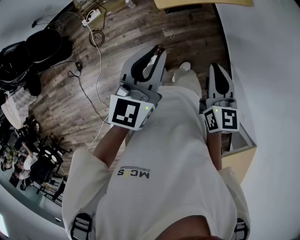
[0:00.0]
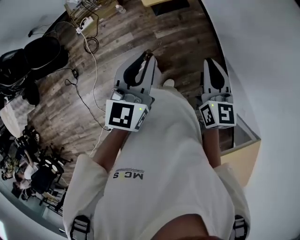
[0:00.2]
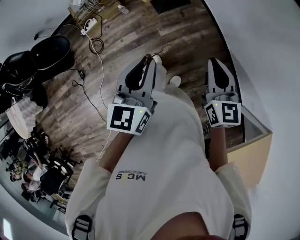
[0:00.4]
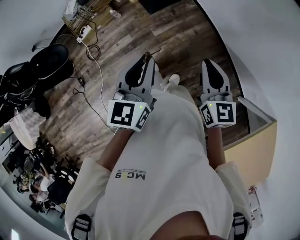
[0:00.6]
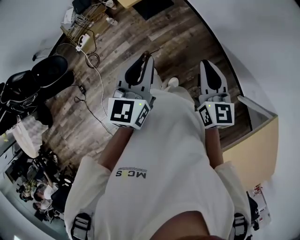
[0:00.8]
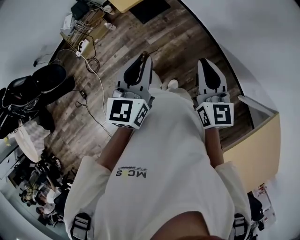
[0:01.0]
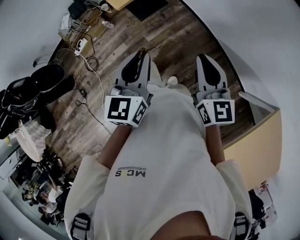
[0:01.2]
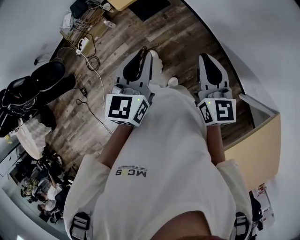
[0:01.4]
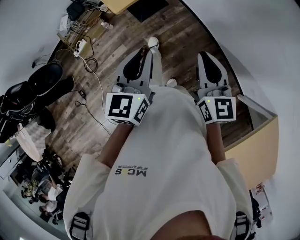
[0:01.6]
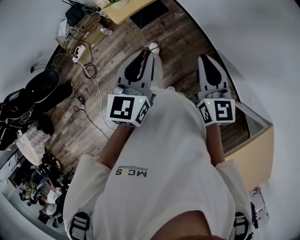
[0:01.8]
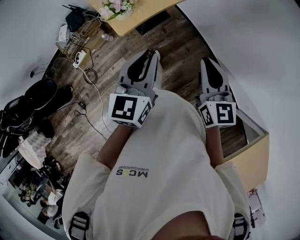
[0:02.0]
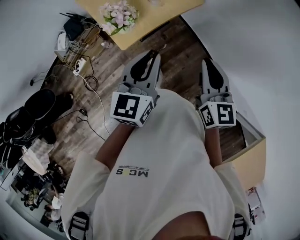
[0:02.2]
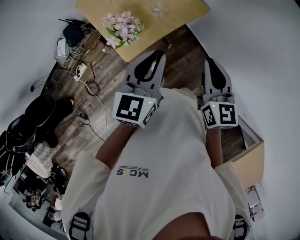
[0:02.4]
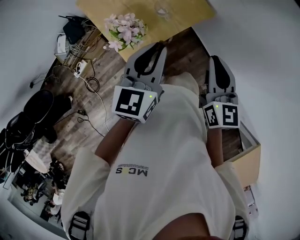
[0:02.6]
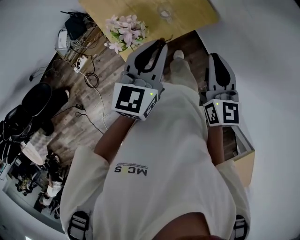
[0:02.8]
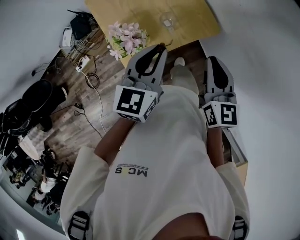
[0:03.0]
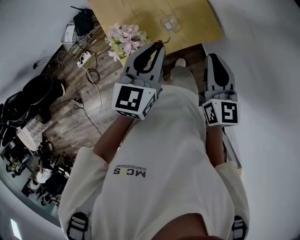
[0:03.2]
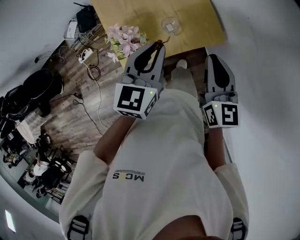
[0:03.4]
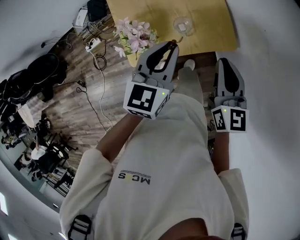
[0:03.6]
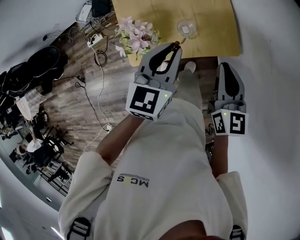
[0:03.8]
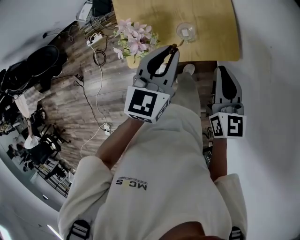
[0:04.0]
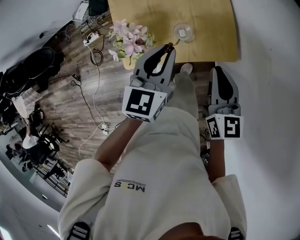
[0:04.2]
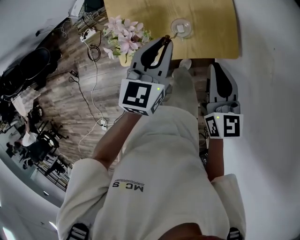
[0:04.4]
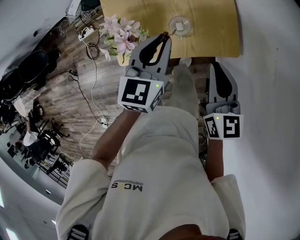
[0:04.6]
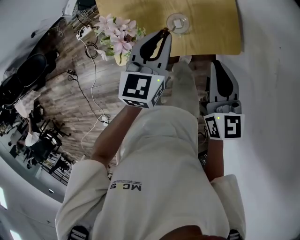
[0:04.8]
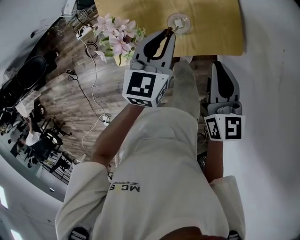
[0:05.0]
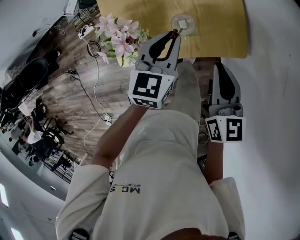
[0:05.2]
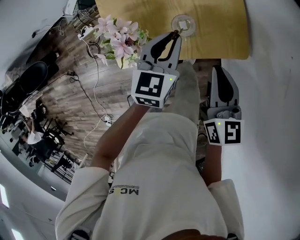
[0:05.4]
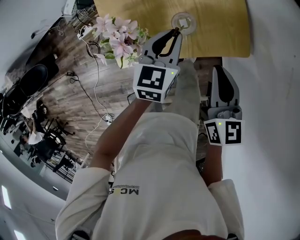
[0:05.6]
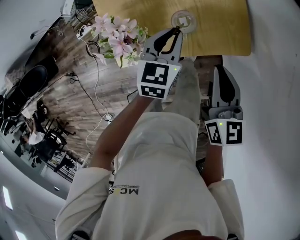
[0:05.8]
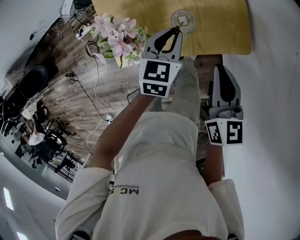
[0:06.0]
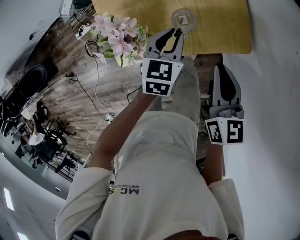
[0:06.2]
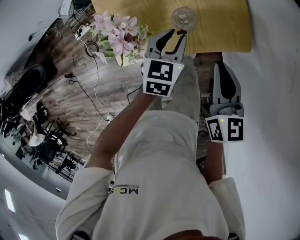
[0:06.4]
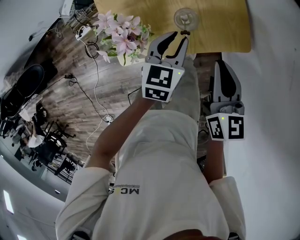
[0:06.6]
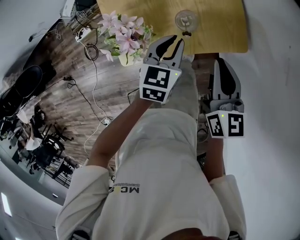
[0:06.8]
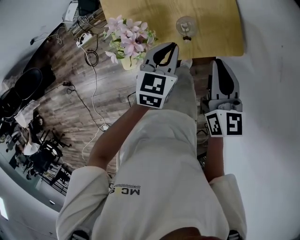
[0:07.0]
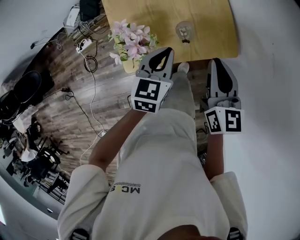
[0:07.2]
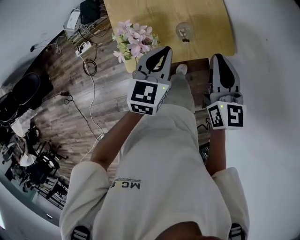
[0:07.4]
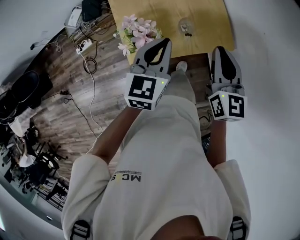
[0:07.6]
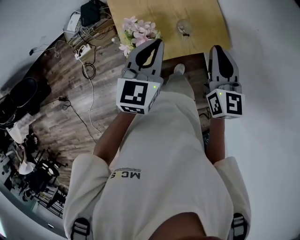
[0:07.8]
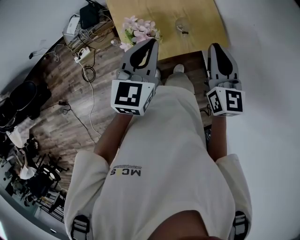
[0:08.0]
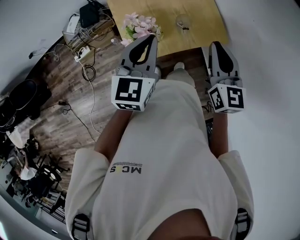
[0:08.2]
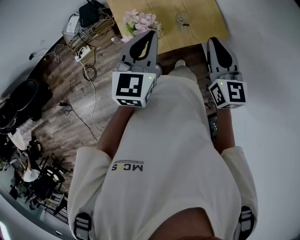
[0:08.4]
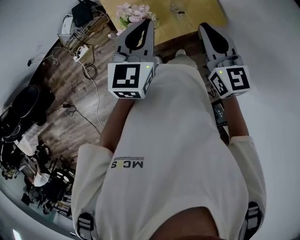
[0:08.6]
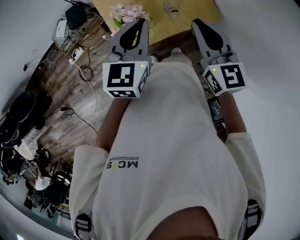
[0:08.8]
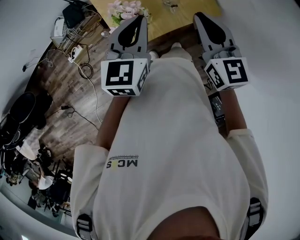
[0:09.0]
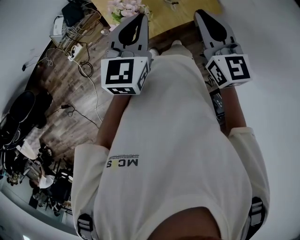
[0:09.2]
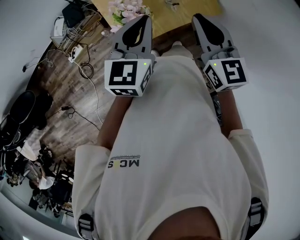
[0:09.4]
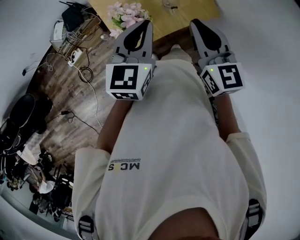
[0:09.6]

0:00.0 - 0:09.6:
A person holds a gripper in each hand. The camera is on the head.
0:00.0 - 0:01.6: Both grippers move to the right and backward, roughly 20 cm.
0:01.6 - 0:03.2: Both grippers are carried forward, approximately 50 cm.
0:03.2 - 0:04.8: Both grippers travel together downward and forward, about 15 cm.
0:04.8 - 0:06.4: The left gripper moves downward, roughly 10 cm, while the right gripper ends up roughly 5 cm from where it was.
0:06.4 - 0:08.0: The right gripper moves upward, approximately 15 cm, and swivels about 20 degrees. The left gripper heads upward, covering approximately 25 cm, swivels roughly 20 degrees, and closes up.
0:08.0 - 0:09.6: The right gripper moves to the left, approximately 5 cm.

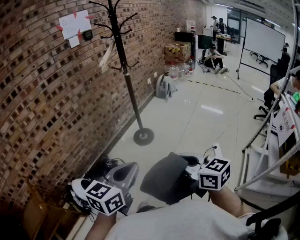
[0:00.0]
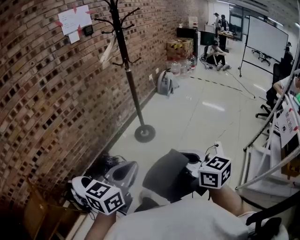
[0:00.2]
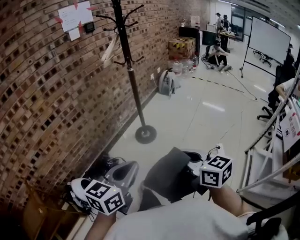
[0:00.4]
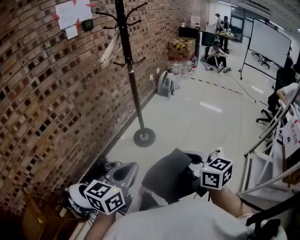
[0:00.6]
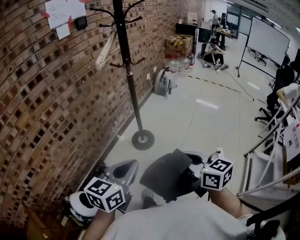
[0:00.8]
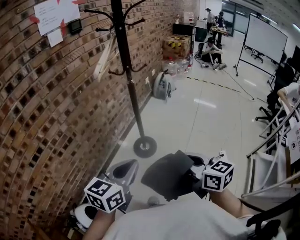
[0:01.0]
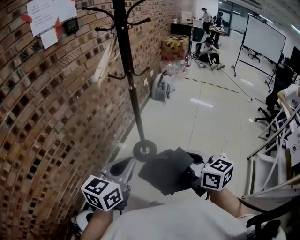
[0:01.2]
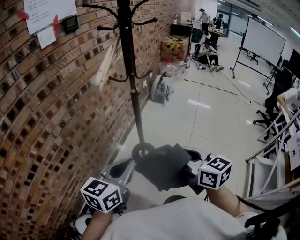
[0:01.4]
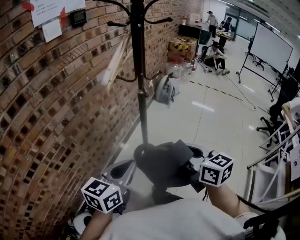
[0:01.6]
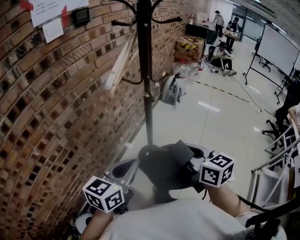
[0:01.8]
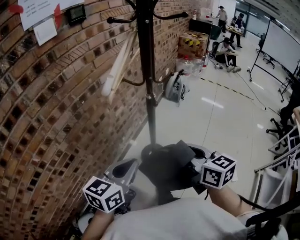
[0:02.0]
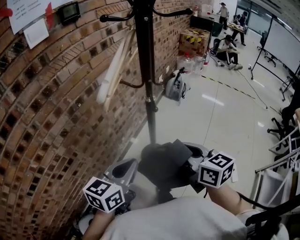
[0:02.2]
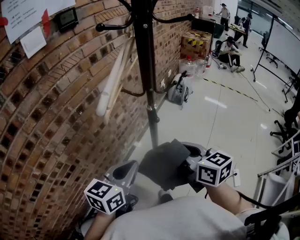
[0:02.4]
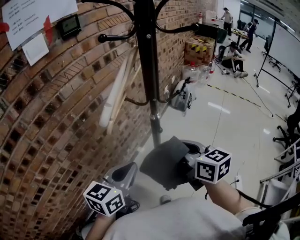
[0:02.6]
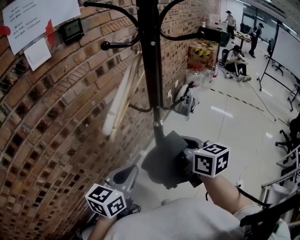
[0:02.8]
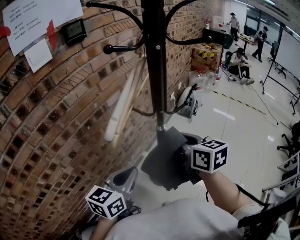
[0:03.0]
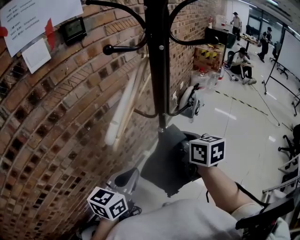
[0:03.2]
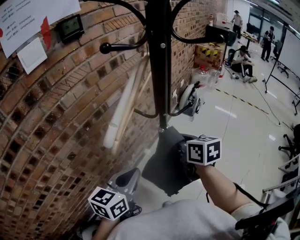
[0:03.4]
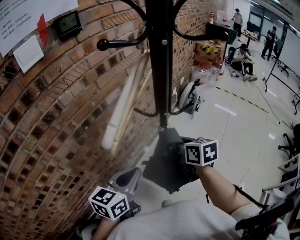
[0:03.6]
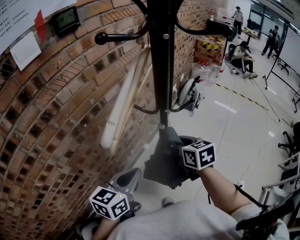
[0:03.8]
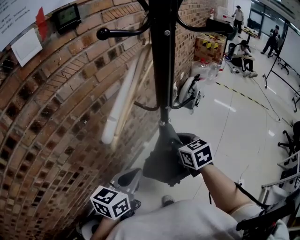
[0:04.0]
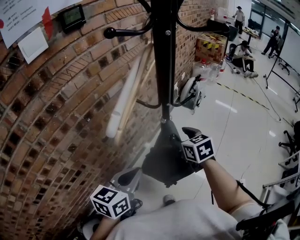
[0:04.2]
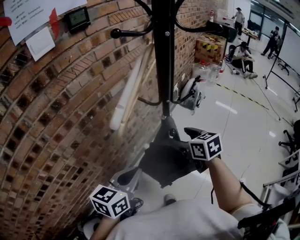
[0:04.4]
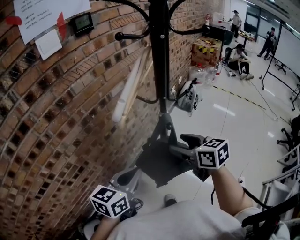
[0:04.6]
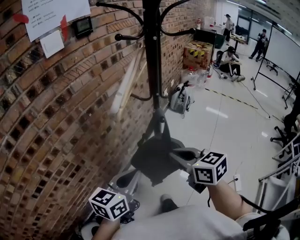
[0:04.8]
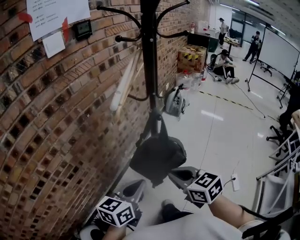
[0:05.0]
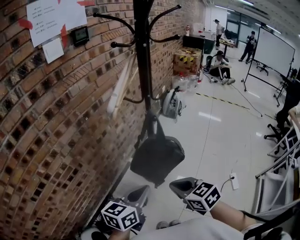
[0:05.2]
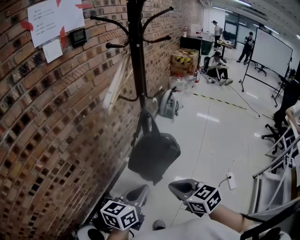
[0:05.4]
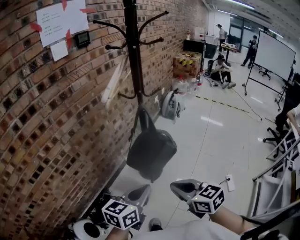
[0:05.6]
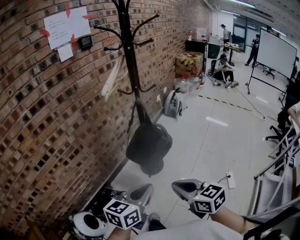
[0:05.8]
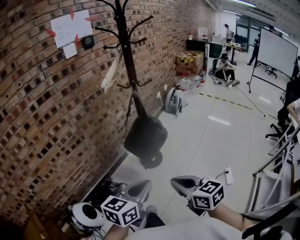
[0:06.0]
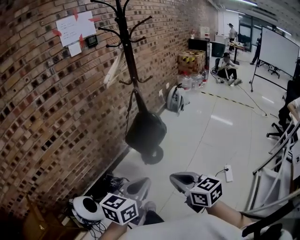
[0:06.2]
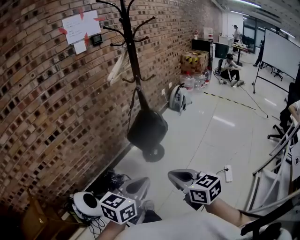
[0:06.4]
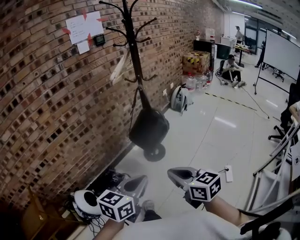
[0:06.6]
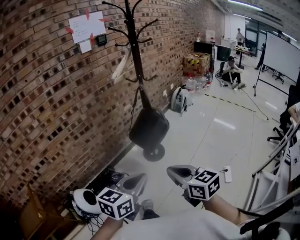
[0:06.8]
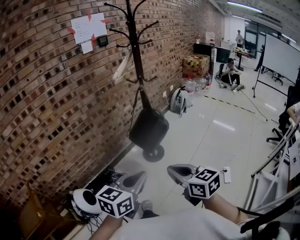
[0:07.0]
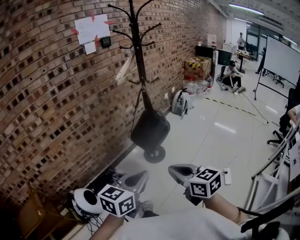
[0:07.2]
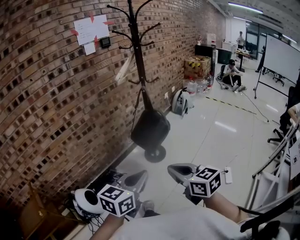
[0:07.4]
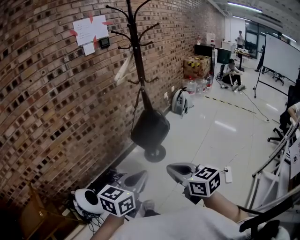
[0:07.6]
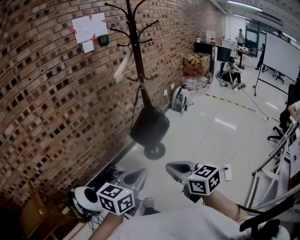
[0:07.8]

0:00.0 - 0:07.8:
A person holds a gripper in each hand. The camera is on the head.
0:00.0 - 0:01.6: The pair of grippers is taken forward, roughly 50 cm.
0:01.6 - 0:03.2: The two grippers go some 25 cm forward.
0:03.2 - 0:04.6: The two grippers go roughly 10 cm backward. The right gripper opens its fingers.
0:04.6 - 0:06.2: The two grippers travel together, backward, approximately 50 cm. The right gripper closes its fingers.
0:06.2 - 0:07.8: The right gripper shifts by roughly 5 cm; the left gripper travels backward by roughly 5 cm.

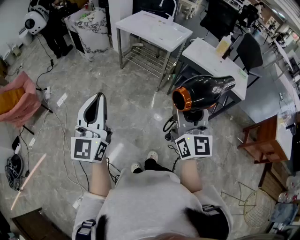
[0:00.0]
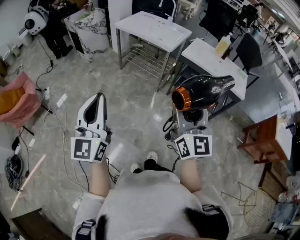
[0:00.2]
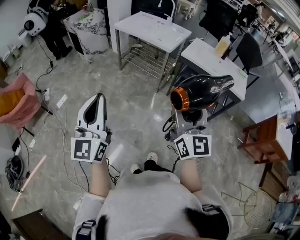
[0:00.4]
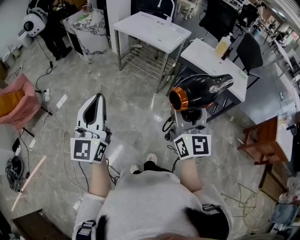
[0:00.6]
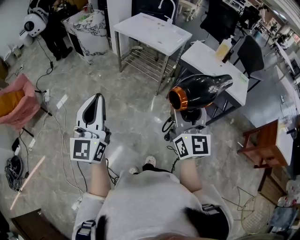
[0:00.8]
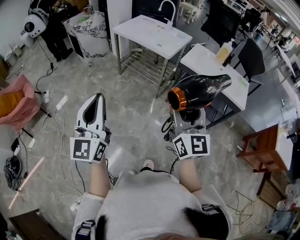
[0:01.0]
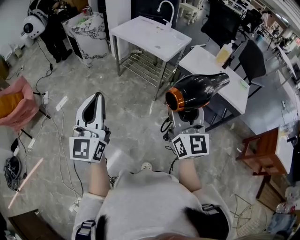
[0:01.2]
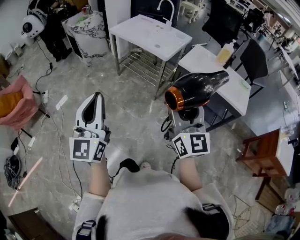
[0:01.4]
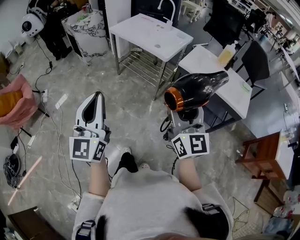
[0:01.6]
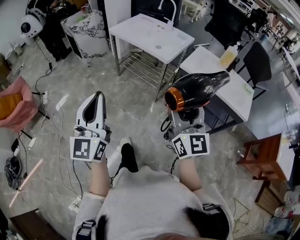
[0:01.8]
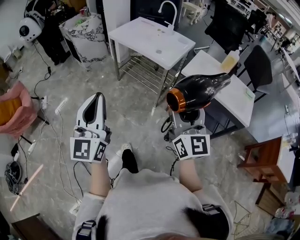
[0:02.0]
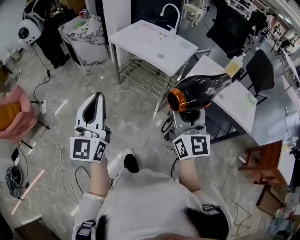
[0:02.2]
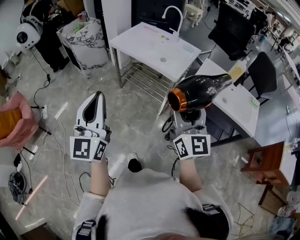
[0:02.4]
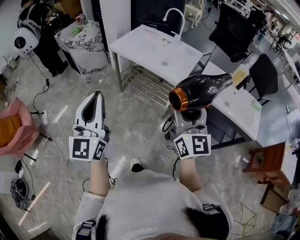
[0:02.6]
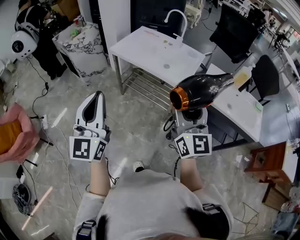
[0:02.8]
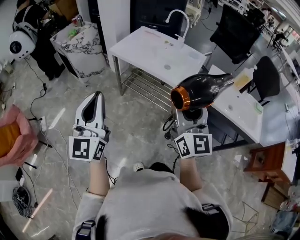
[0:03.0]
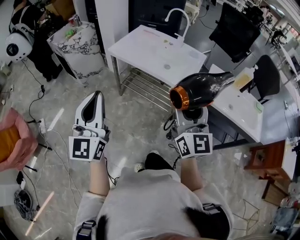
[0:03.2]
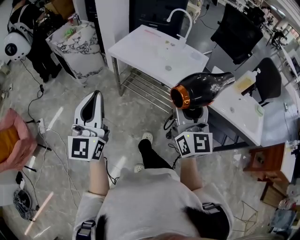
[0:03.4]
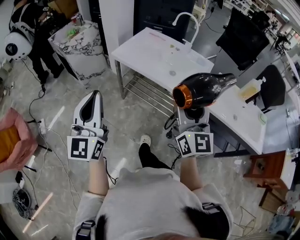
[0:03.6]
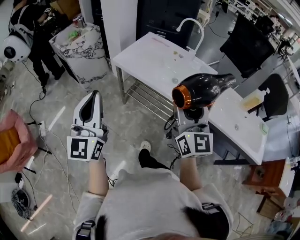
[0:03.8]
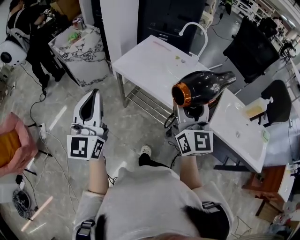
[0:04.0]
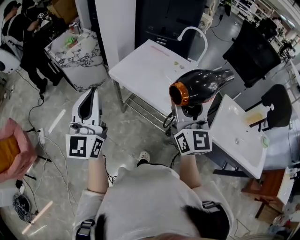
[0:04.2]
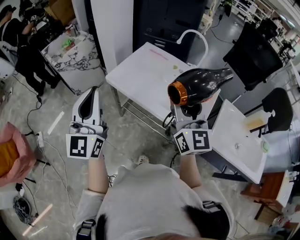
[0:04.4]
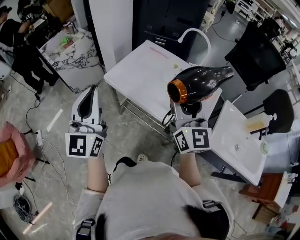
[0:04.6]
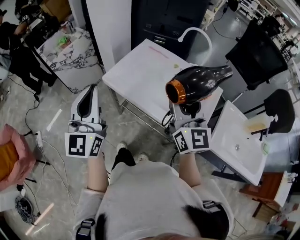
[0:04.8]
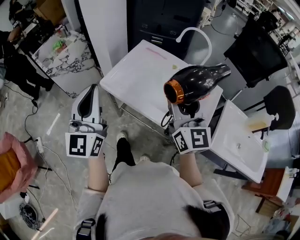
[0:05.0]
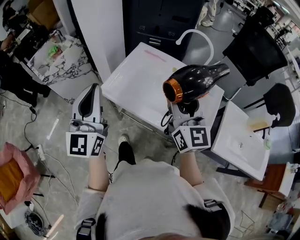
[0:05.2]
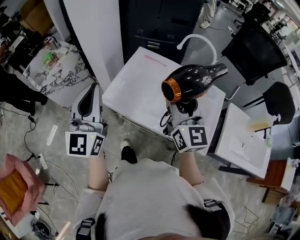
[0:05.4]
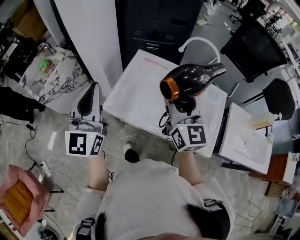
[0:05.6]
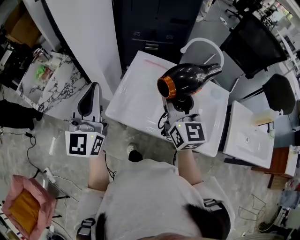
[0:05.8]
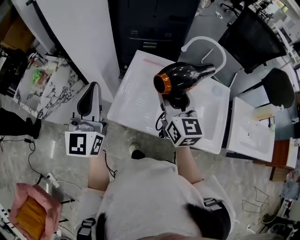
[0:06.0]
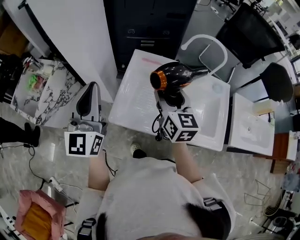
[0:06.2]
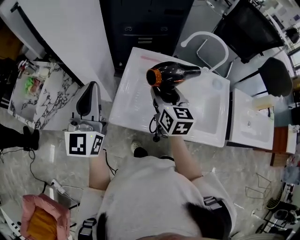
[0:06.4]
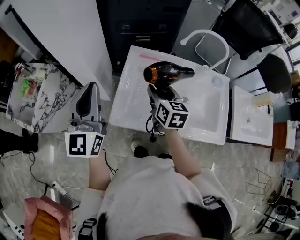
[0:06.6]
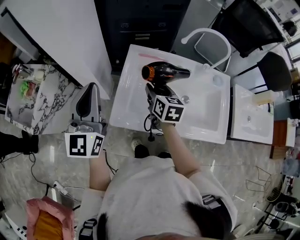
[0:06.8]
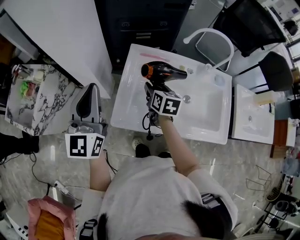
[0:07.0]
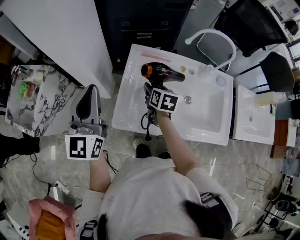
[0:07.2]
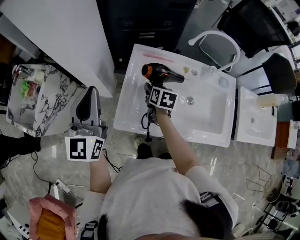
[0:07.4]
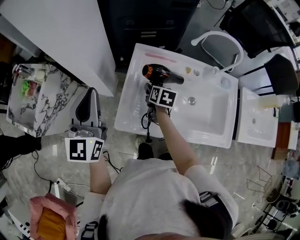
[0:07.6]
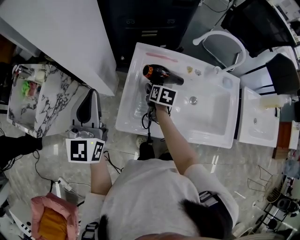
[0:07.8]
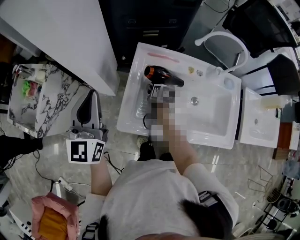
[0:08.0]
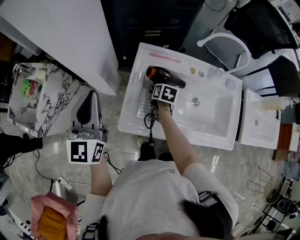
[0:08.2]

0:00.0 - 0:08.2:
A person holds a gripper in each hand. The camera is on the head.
0:00.0 - 0:01.6: Both grippers travel together forward and to the right, approximately 15 cm.
0:01.6 - 0:03.2: Both grippers travel together forward and to the left, approximately 35 cm.
0:03.2 - 0:05.0: The two grippers go approximately 40 cm forward.
0:05.0 - 0:06.6: The left gripper shifts about 30 cm forward and to the left, and changes its angle by about 20 degrees. The right gripper goes roughly 35 cm forward, downward and to the left, and tilts its fingers some 40 degrees downward.
0:06.6 - 0:08.2: The right gripper heads downward, covering roughly 20 cm, and tips its fingers downward by about 30 degrees, while the left gripper moves approximately 10 cm.
